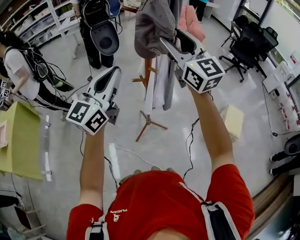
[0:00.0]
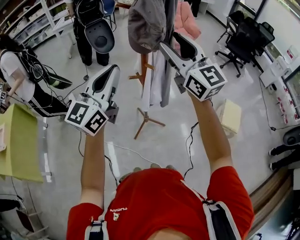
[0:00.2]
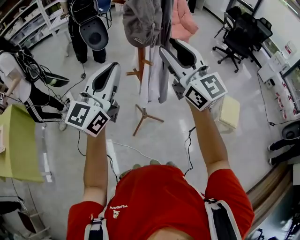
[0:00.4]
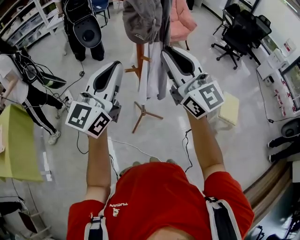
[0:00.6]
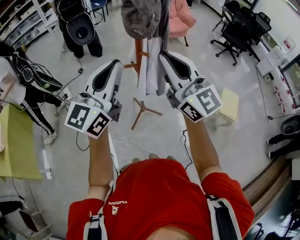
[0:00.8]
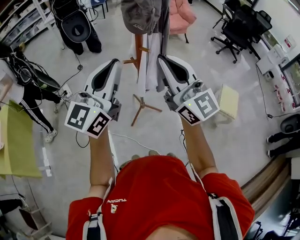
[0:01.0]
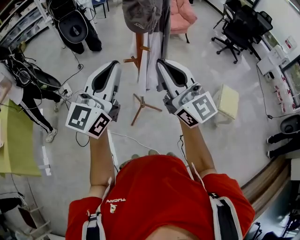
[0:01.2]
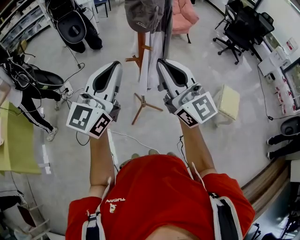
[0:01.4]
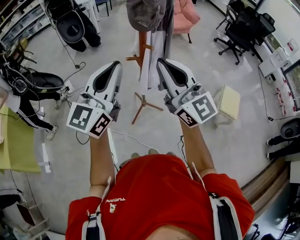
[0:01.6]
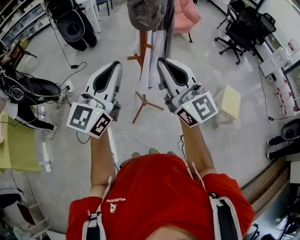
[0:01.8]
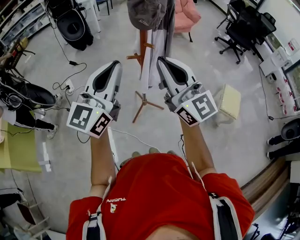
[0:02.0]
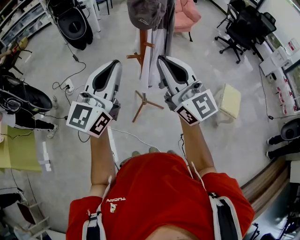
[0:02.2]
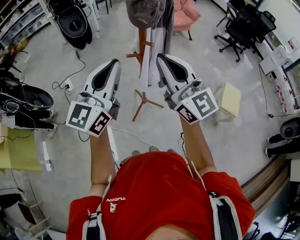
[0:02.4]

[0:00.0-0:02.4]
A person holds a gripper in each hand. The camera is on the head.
0:00.0 to 0:01.2: The left gripper goes about 5 cm backward. Meanwhile the right gripper goes some 15 cm backward and downward, and closes up.
0:01.2 to 0:02.4: The grippers move only a little.

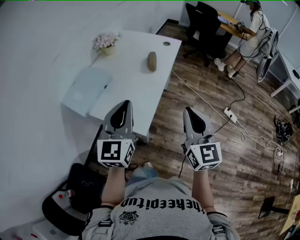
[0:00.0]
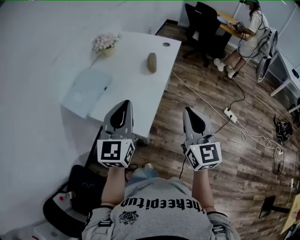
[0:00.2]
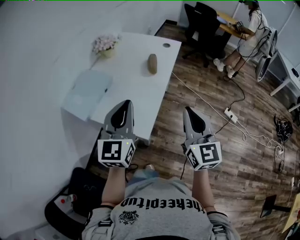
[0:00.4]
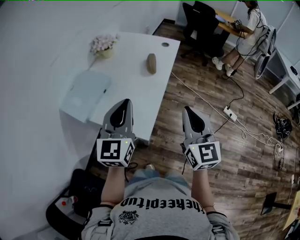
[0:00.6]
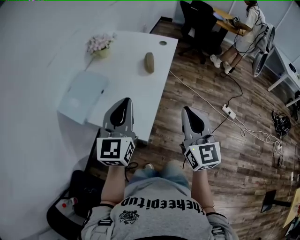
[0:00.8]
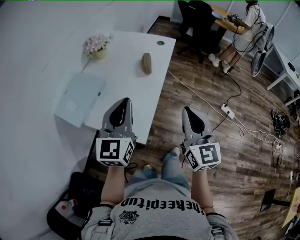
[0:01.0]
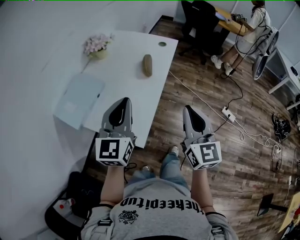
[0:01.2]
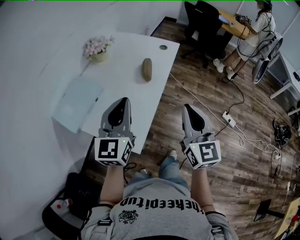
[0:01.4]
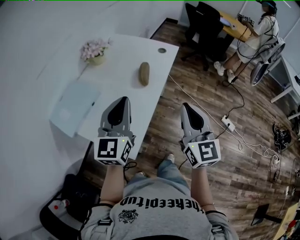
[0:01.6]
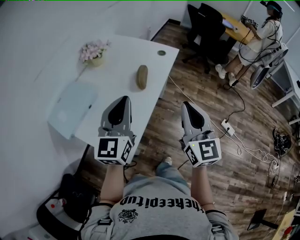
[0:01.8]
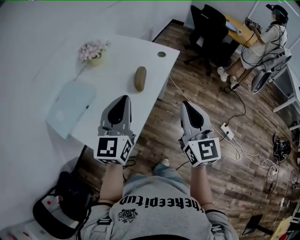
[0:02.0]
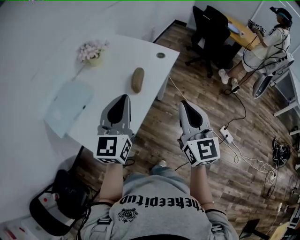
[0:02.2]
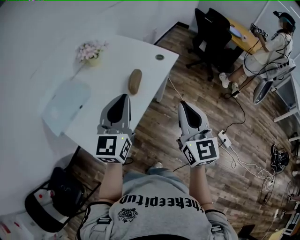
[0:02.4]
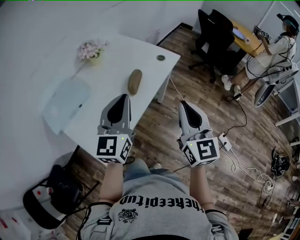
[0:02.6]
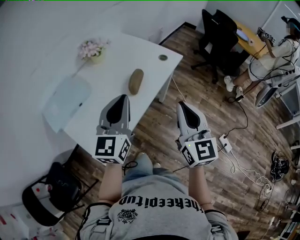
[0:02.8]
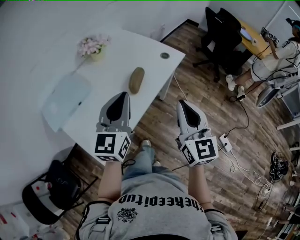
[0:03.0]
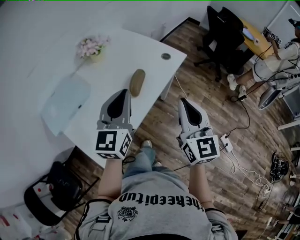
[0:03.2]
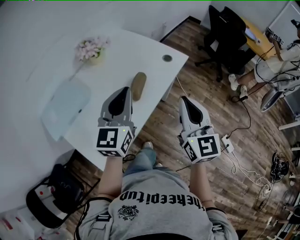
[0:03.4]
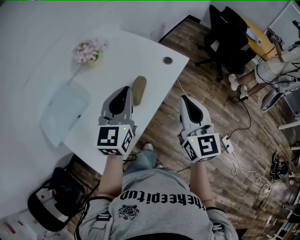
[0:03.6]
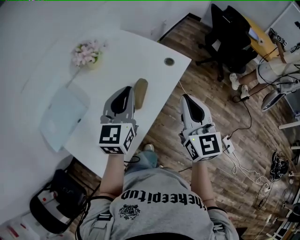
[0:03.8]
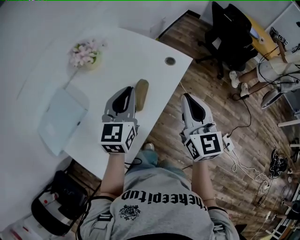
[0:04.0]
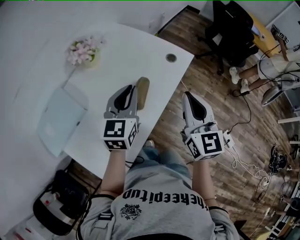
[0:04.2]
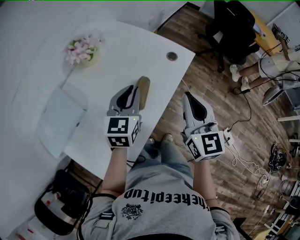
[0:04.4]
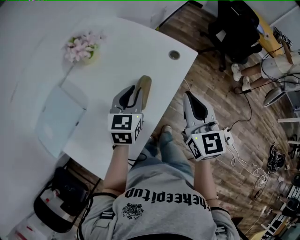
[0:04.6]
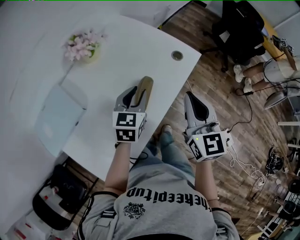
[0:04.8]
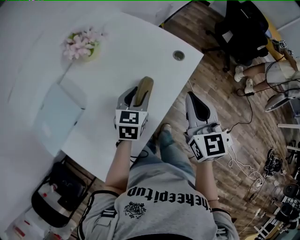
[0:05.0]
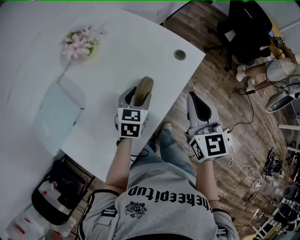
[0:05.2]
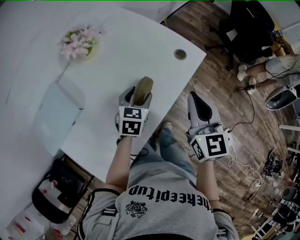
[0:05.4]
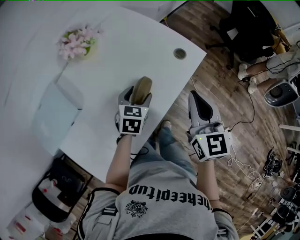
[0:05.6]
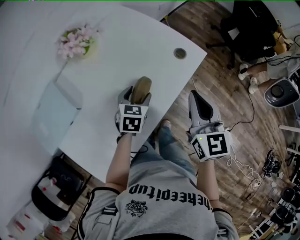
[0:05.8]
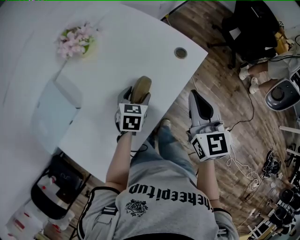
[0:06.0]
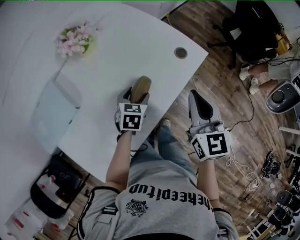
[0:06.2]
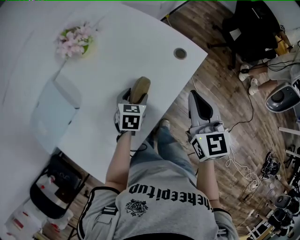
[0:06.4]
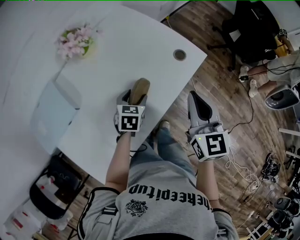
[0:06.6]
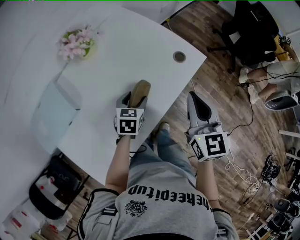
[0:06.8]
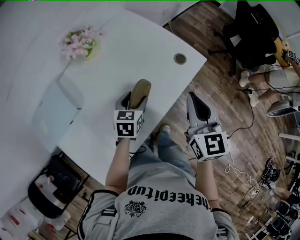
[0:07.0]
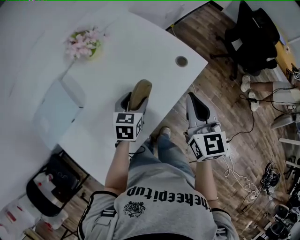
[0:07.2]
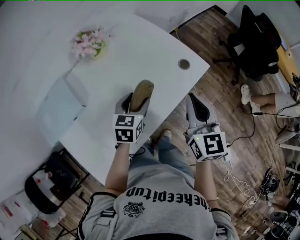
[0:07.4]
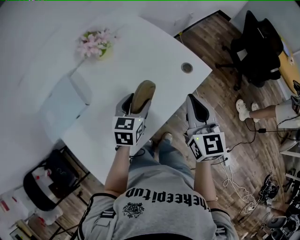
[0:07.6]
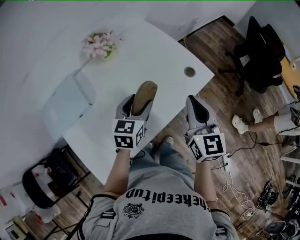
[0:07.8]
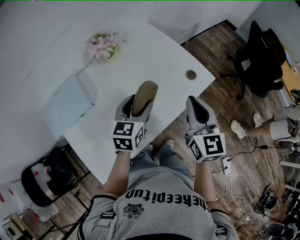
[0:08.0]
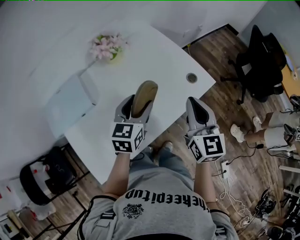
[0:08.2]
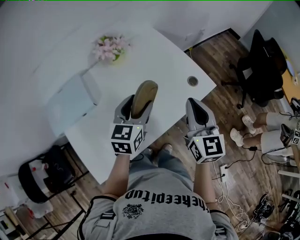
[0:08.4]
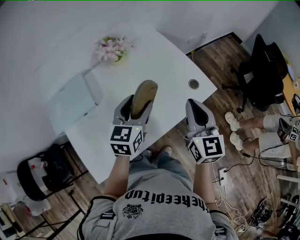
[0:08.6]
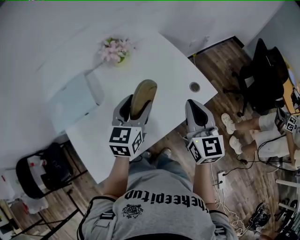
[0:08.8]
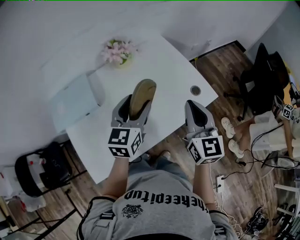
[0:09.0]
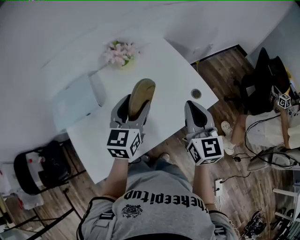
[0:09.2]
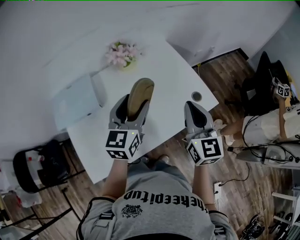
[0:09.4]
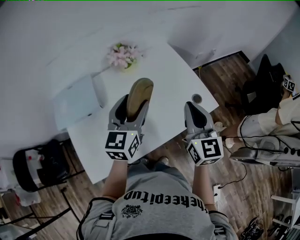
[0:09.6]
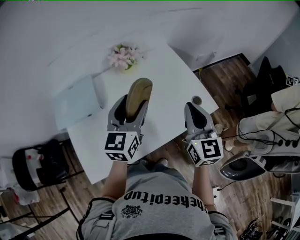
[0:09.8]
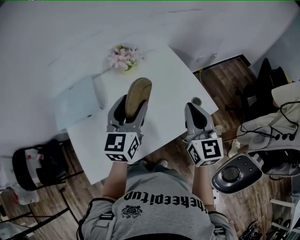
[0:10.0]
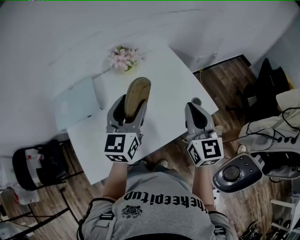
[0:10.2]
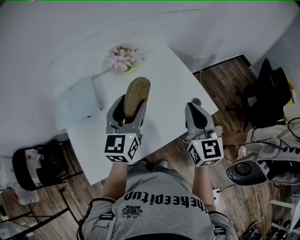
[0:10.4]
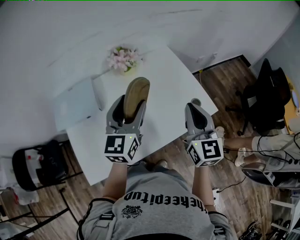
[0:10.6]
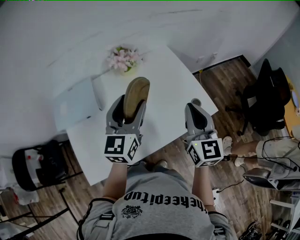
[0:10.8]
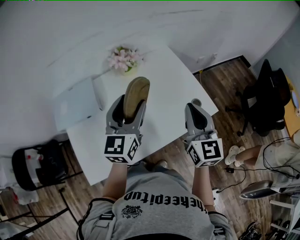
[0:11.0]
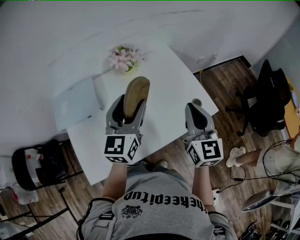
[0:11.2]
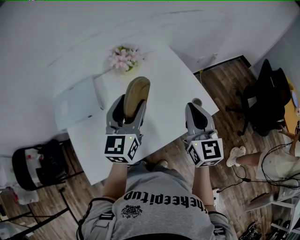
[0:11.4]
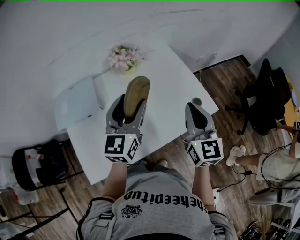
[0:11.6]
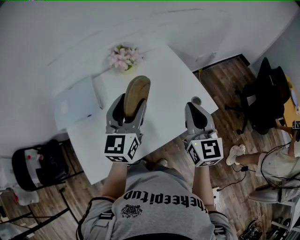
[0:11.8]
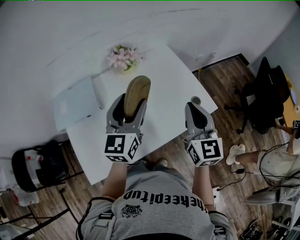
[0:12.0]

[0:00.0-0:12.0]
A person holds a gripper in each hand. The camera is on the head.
0:00.0 to 0:01.6: Both grippers move forward, roughly 15 cm.
0:01.6 to 0:03.0: The right gripper travels forward and to the right by approximately 15 cm, while the left gripper goes roughly 10 cm to the right and forward.
0:03.0 to 0:04.4: The left gripper shifts some 20 cm forward and downward, while the right gripper moves forward, roughly 15 cm.
0:04.4 to 0:06.0: The right gripper heads forward, covering approximately 5 cm. The left gripper goes roughly 15 cm downward, turns by roughly 30 degrees, and opens.
0:06.0 to 0:07.6: The left gripper shifts about 10 cm upward.
0:07.6 to 0:09.0: The left gripper heads upward, covering about 10 cm, and changes its angle by some 20 degrees.
0:09.0 to 0:10.4: The left gripper moves upward, some 5 cm.
0:10.4 to 0:12.0: The two grippers keep their place.

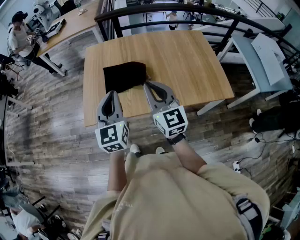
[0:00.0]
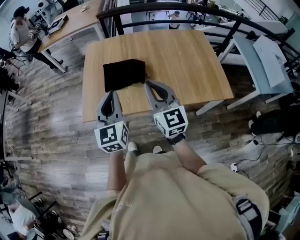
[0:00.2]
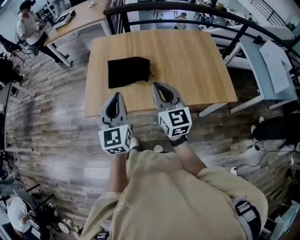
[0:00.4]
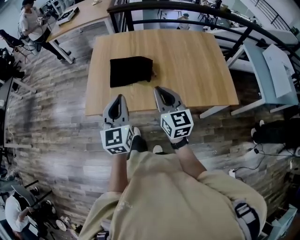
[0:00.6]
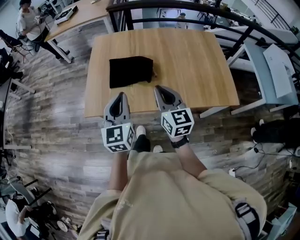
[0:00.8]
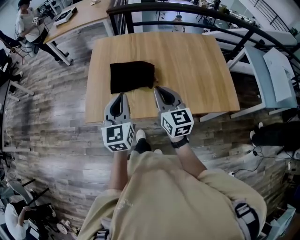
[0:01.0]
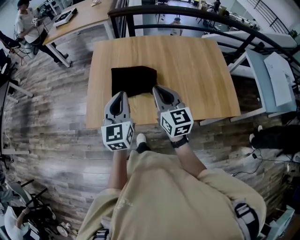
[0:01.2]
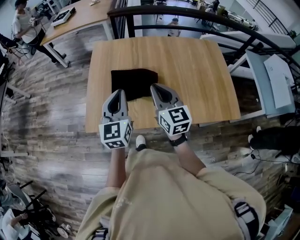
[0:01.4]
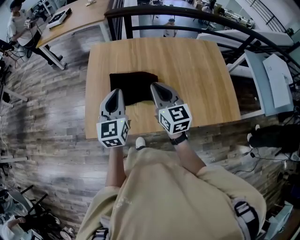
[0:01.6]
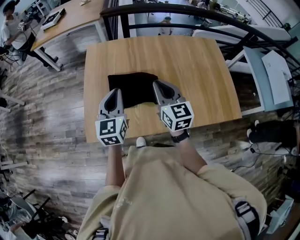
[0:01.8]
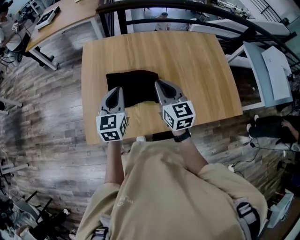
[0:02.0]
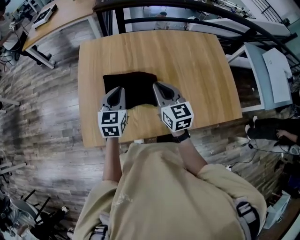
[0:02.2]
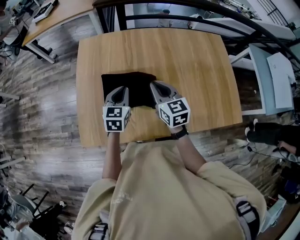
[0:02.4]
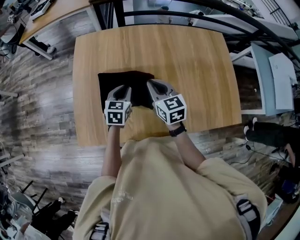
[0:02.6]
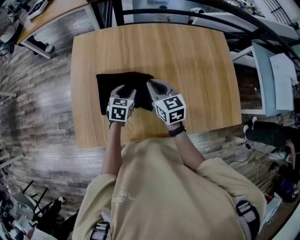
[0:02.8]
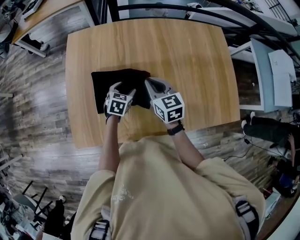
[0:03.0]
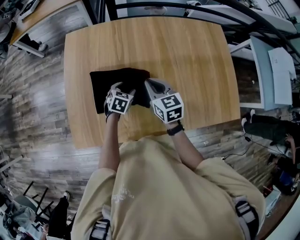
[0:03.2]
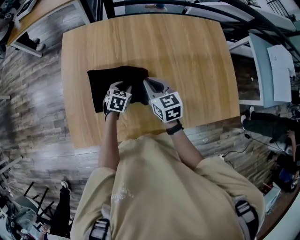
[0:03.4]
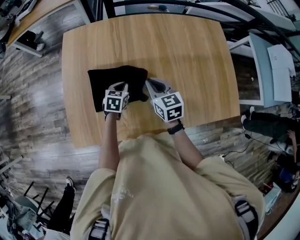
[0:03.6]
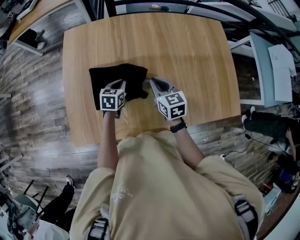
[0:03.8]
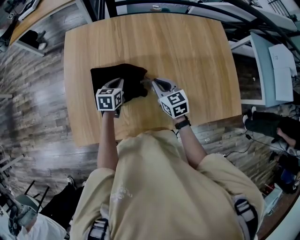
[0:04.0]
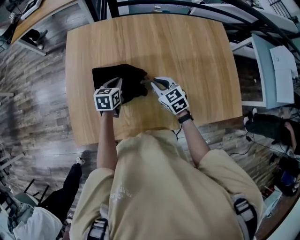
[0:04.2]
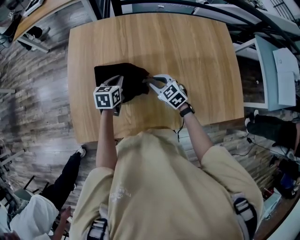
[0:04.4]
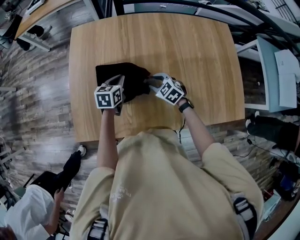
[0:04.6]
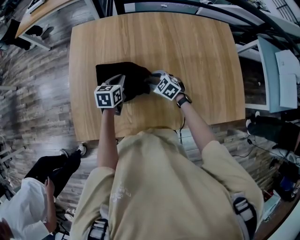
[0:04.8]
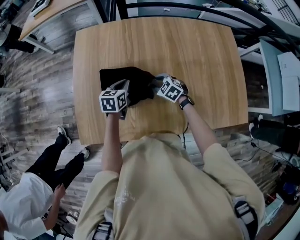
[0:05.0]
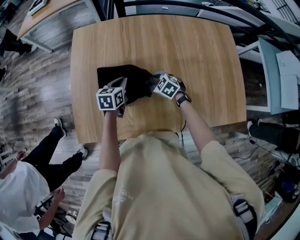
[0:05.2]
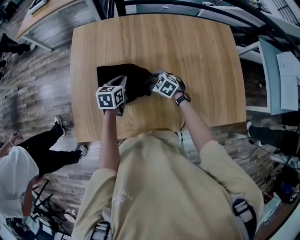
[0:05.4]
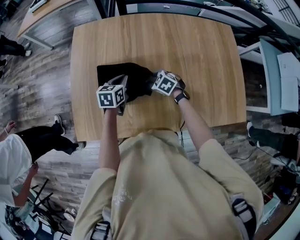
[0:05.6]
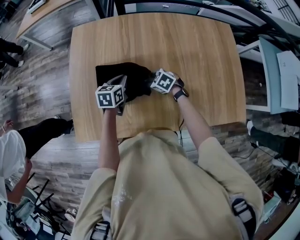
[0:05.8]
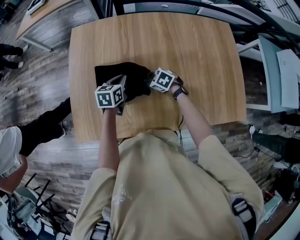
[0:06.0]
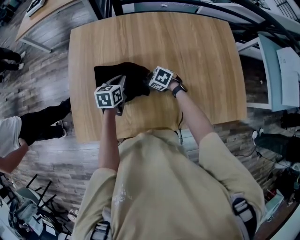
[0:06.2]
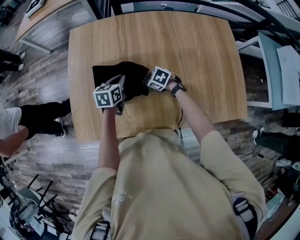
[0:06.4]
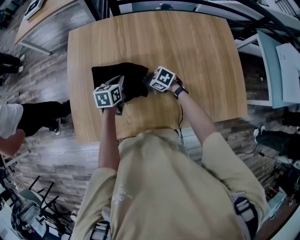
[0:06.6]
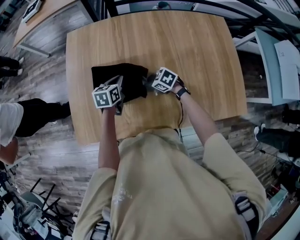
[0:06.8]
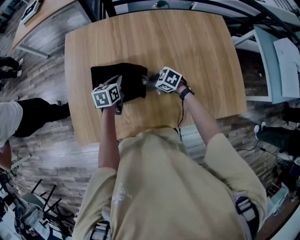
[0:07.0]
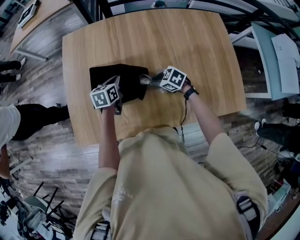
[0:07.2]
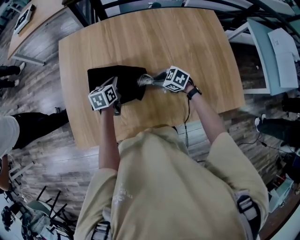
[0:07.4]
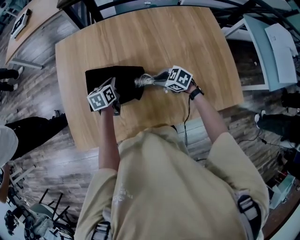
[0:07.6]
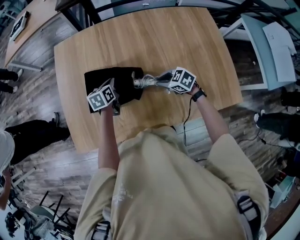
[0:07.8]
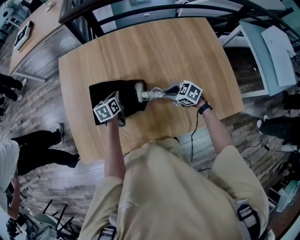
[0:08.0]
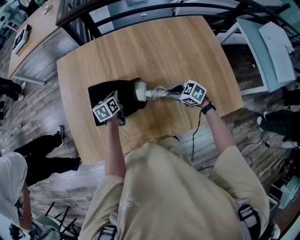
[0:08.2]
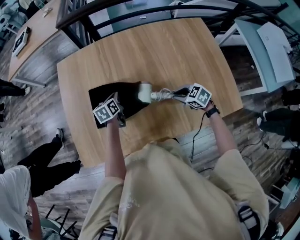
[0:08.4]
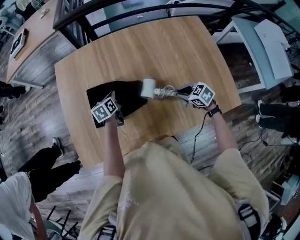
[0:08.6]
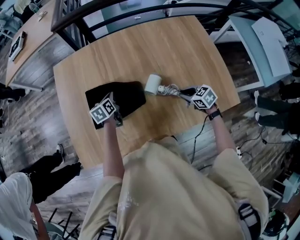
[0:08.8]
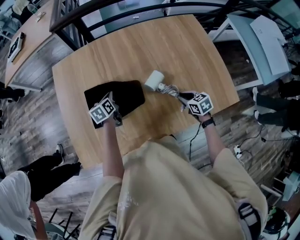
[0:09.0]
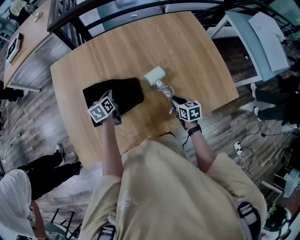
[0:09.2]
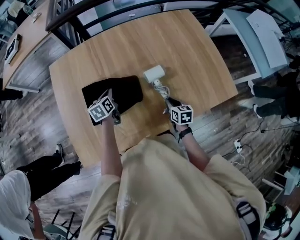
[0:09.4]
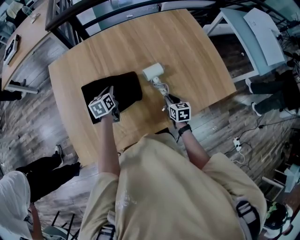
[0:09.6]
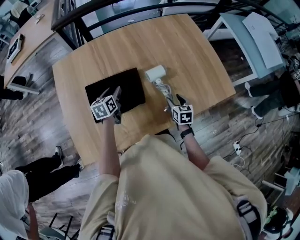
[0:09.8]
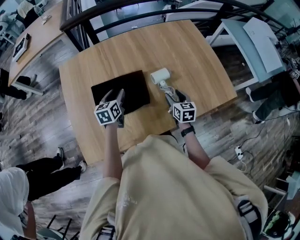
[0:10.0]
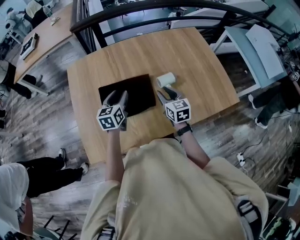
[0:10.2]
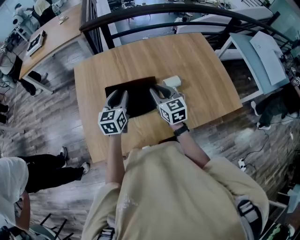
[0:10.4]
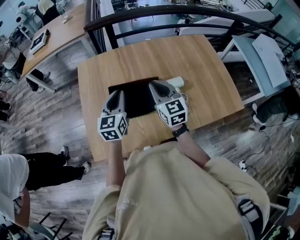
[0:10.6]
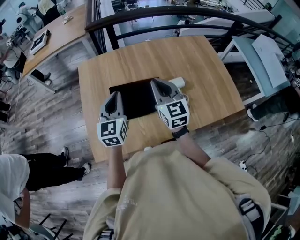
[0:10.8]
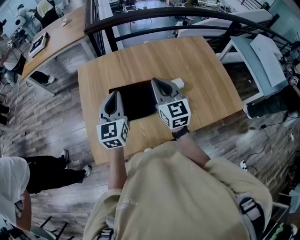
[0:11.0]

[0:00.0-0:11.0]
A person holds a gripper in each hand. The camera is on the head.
0:00.0 to 0:01.6: Both grippers move forward, roughly 20 cm.
0:01.6 to 0:03.2: The right gripper is displaced downward and forward by roughly 20 cm, and swivels roughly 20 degrees. The left gripper is displaced downward and forward by about 35 cm, points its fingers approximately 40 degrees further downward, and opens.
0:03.2 to 0:04.8: The left gripper moves upward, some 5 cm, turns by about 30 degrees, and closes its fingers, while the right gripper heads downward, covering some 15 cm, changes its angle by some 40 degrees, and opens.
0:04.8 to 0:06.2: The right gripper turns by some 20 degrees.
0:06.2 to 0:07.8: The right gripper heads to the right, backward and upward, covering approximately 15 cm.
0:07.8 to 0:09.4: The right gripper moves approximately 10 cm, and turns by some 70 degrees.
0:09.4 to 0:11.0: The left gripper is displaced upward and backward by about 30 cm, tips its fingers upward by about 30 degrees, and opens, then closes again. The right gripper travels upward and to the left by approximately 40 cm, angles its fingers upward, by approximately 40 degrees, and opens, then closes again.
